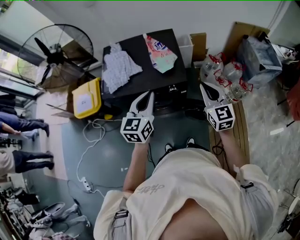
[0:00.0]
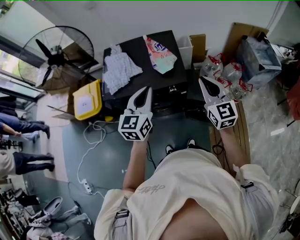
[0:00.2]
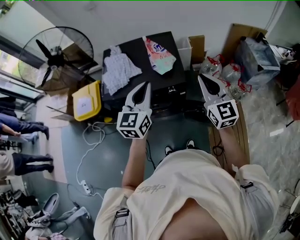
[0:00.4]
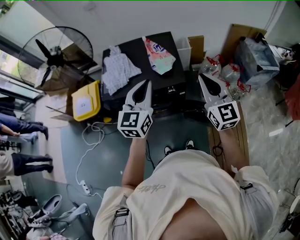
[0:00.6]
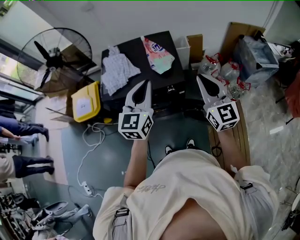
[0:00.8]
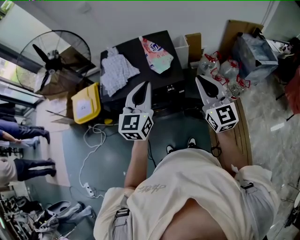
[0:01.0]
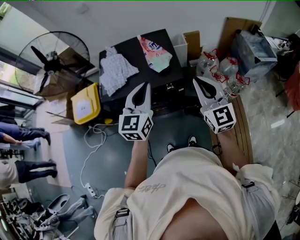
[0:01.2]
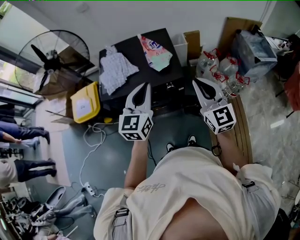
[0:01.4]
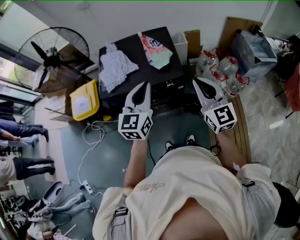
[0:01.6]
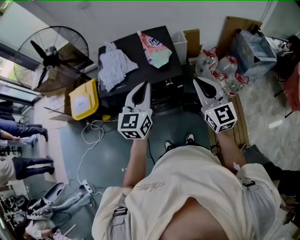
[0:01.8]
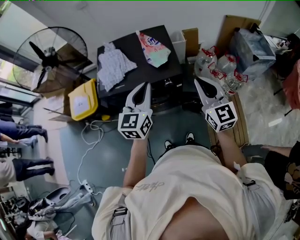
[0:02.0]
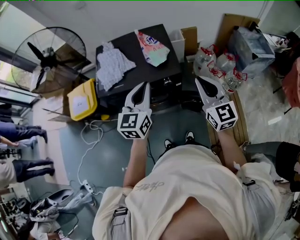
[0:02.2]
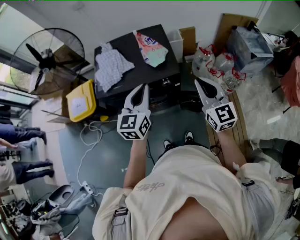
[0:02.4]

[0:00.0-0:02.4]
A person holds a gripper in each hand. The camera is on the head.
0:00.0 to 0:01.2: Both grippers move upward, some 5 cm.
0:01.2 to 0:02.4: The grippers stay close to where they were, moving slightly.

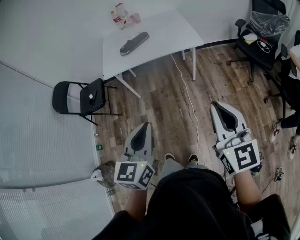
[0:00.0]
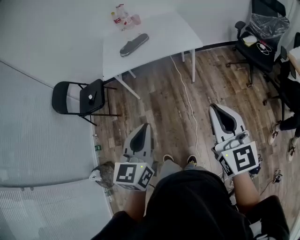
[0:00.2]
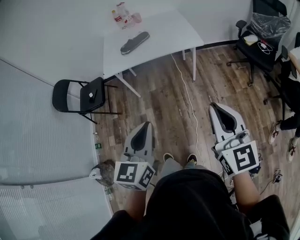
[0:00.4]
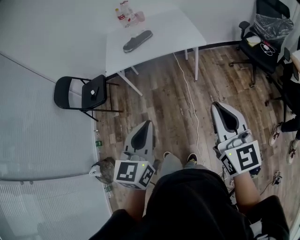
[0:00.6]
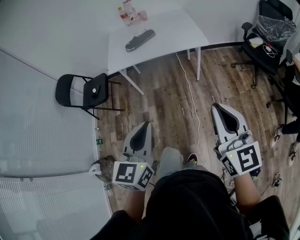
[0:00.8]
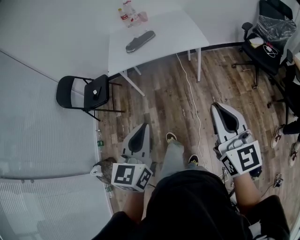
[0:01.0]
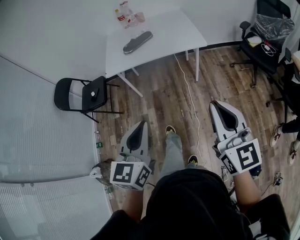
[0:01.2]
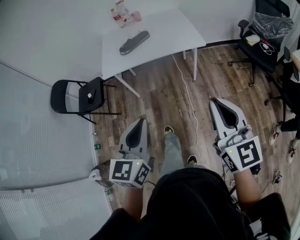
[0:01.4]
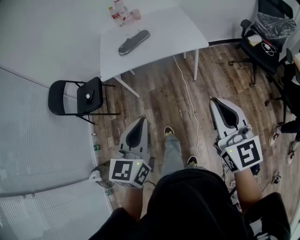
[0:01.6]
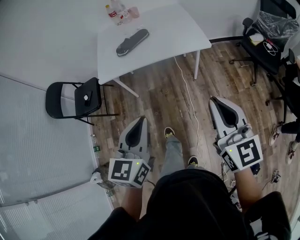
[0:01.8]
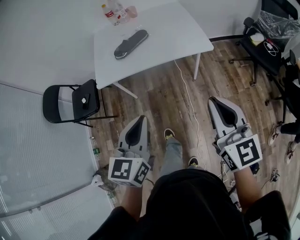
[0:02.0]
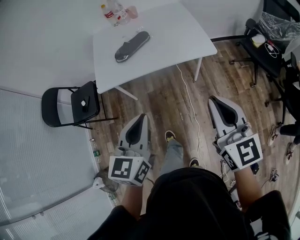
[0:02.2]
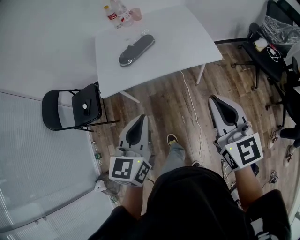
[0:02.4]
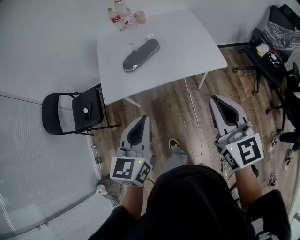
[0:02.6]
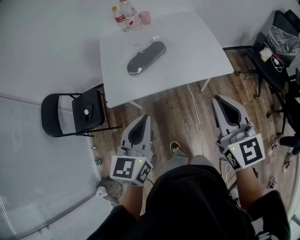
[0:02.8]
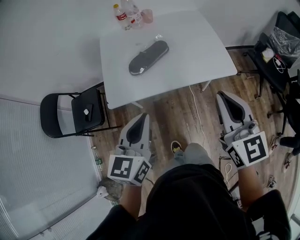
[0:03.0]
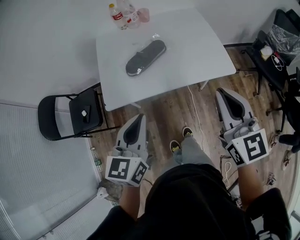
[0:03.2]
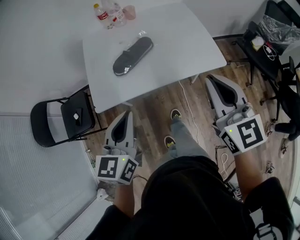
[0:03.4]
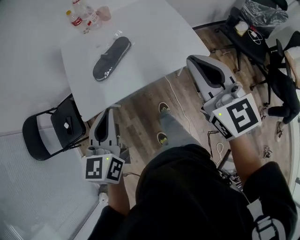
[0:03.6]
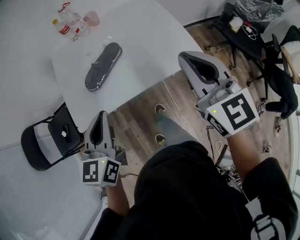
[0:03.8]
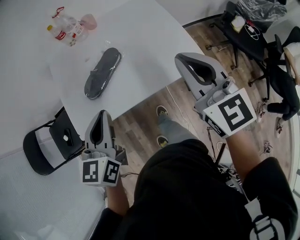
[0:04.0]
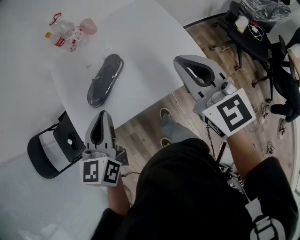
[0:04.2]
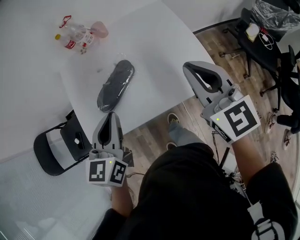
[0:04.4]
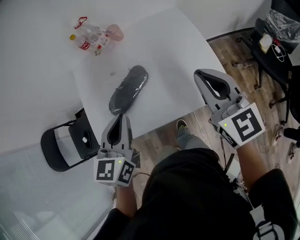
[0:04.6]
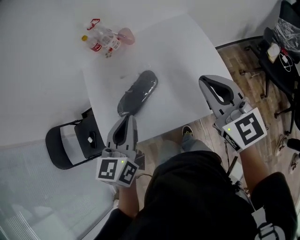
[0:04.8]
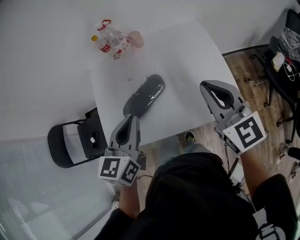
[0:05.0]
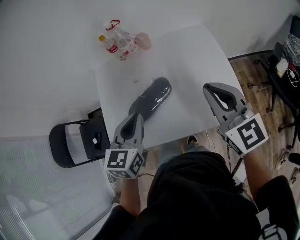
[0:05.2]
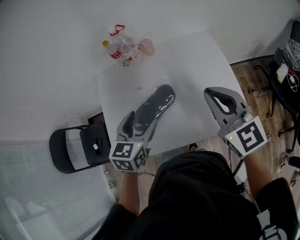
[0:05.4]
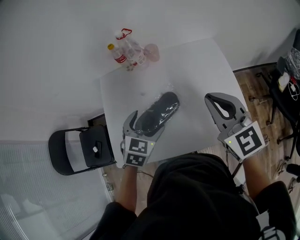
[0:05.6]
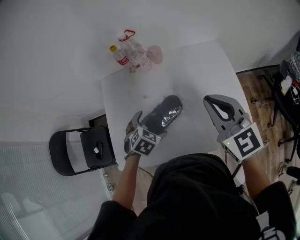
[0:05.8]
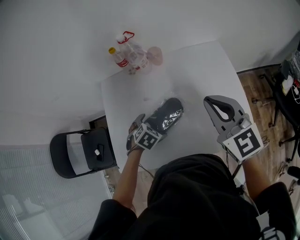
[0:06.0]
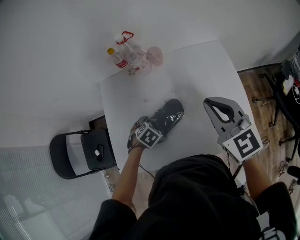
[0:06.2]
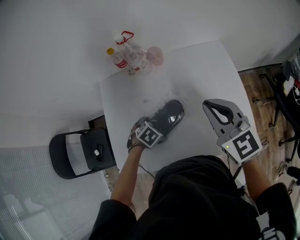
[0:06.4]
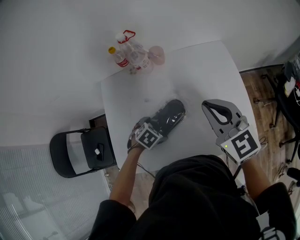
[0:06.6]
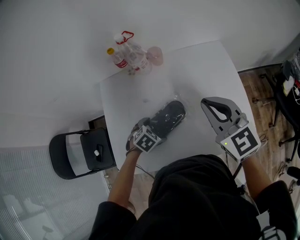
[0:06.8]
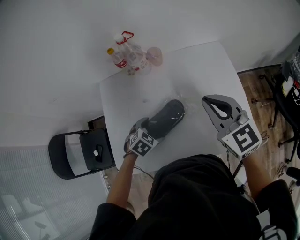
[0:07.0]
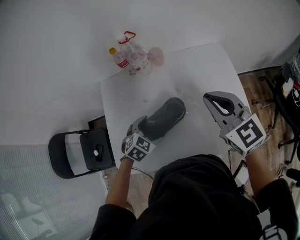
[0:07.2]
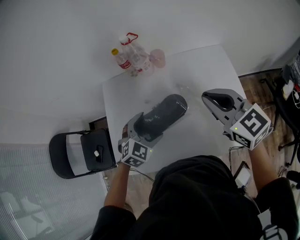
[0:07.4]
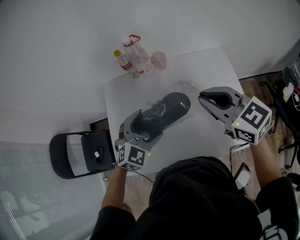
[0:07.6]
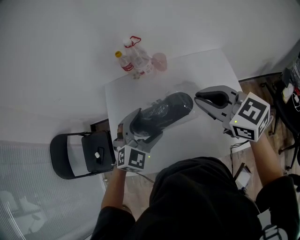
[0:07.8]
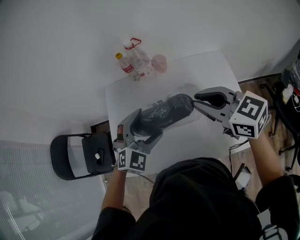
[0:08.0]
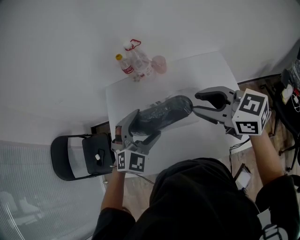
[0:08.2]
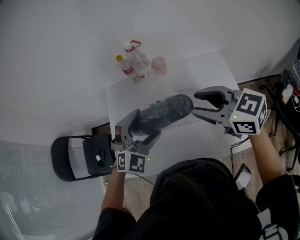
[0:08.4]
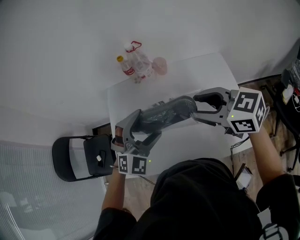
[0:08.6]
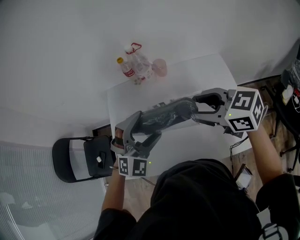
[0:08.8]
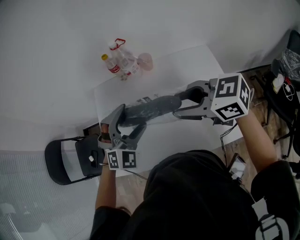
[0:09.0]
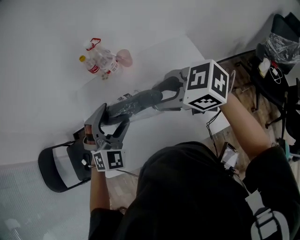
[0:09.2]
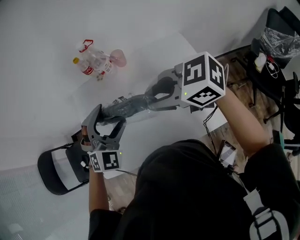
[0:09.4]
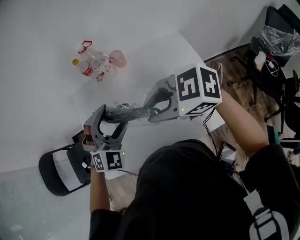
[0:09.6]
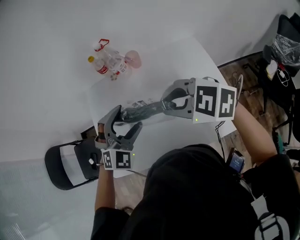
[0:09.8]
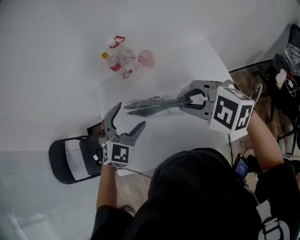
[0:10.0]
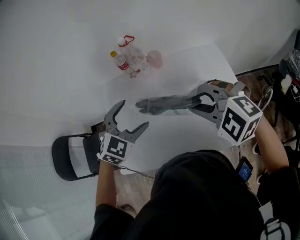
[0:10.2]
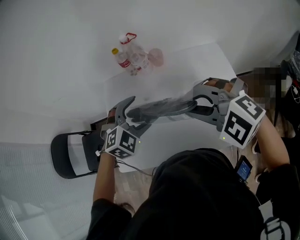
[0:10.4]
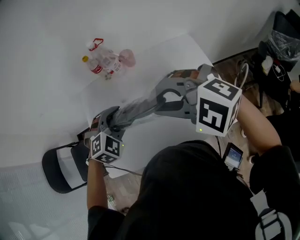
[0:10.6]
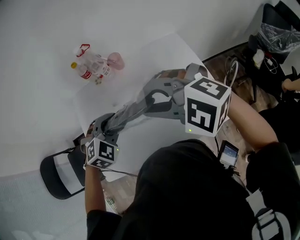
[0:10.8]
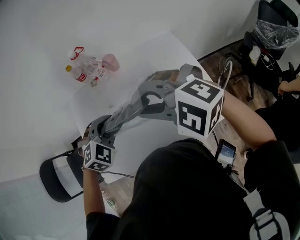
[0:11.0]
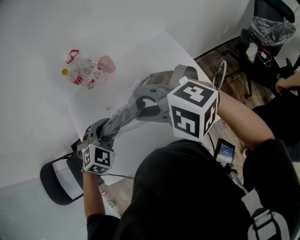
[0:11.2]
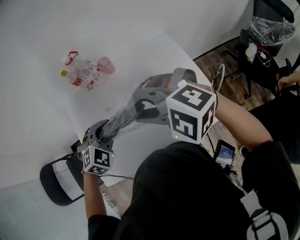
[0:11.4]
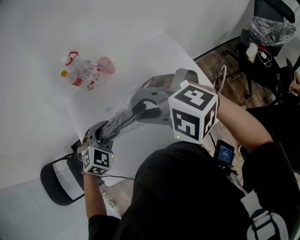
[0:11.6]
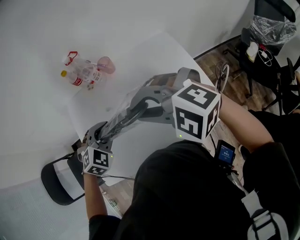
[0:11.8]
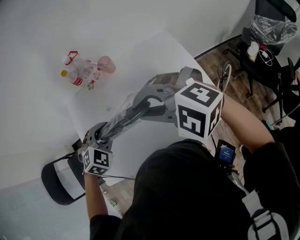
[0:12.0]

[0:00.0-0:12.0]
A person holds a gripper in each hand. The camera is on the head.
0:00.0 to 0:01.6: Both grippers move forward, some 10 cm.
0:01.6 to 0:03.0: Both grippers travel together forward and to the left, roughly 35 cm.
0:03.0 to 0:04.4: The two grippers go some 25 cm forward.
0:04.4 to 0:06.0: The left gripper is displaced downward and forward by roughly 30 cm, points its fingers some 50 degrees further downward, and opens its fingers. Meanwhile the right gripper is displaced forward and to the left by some 20 cm.
0:06.0 to 0:07.6: The left gripper shifts about 15 cm upward, and tips its fingers upward by some 40 degrees. Meanwhile the right gripper swivels approximately 20 degrees.
0:07.6 to 0:09.0: The left gripper moves upward, roughly 5 cm, and swivels about 30 degrees. The right gripper turns by roughly 30 degrees, and opens up.
0:09.0 to 0:10.4: The left gripper rotates some 20 degrees. Meanwhile the right gripper twists roughly 50 degrees counterclockwise, seen from behind, and closes up.
0:10.4 to 0:12.0: The left gripper ends up approximately 5 cm from where it was, and closes.

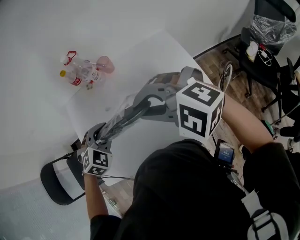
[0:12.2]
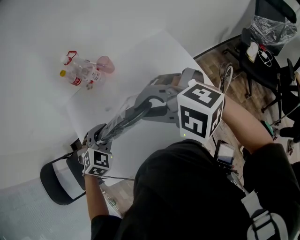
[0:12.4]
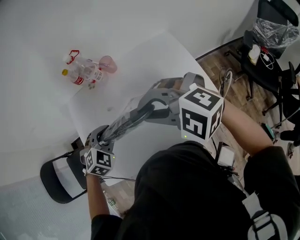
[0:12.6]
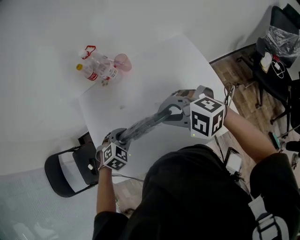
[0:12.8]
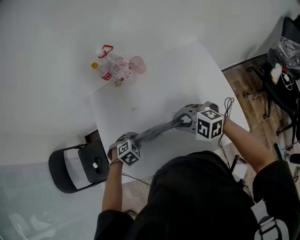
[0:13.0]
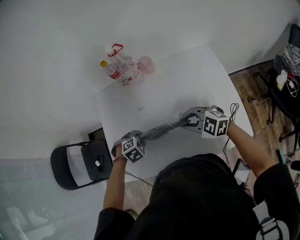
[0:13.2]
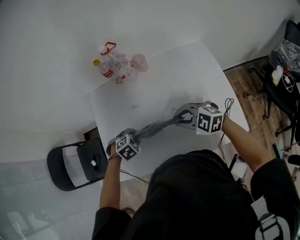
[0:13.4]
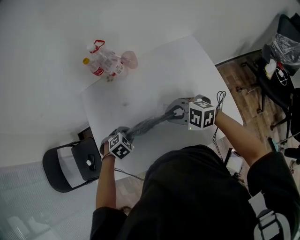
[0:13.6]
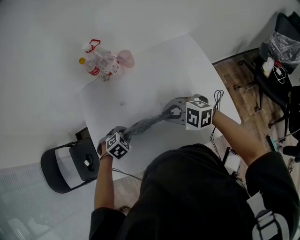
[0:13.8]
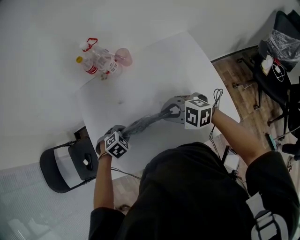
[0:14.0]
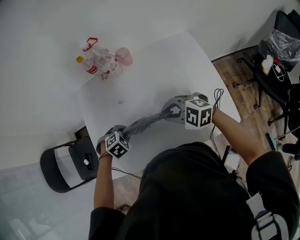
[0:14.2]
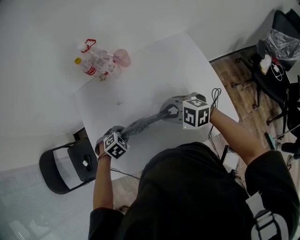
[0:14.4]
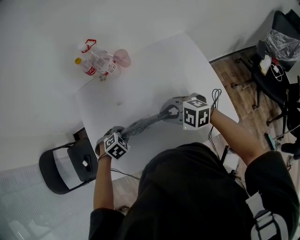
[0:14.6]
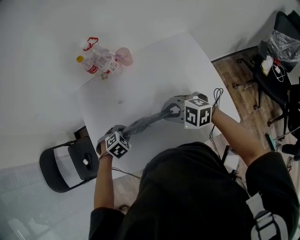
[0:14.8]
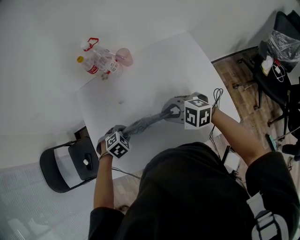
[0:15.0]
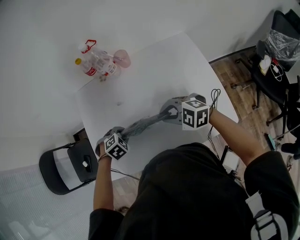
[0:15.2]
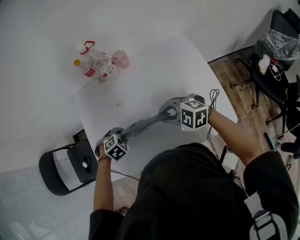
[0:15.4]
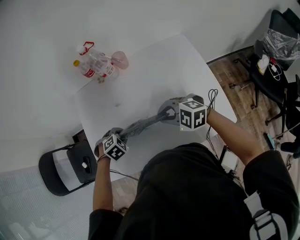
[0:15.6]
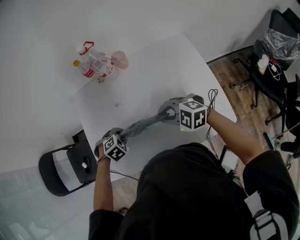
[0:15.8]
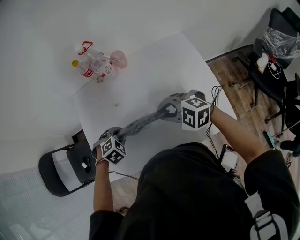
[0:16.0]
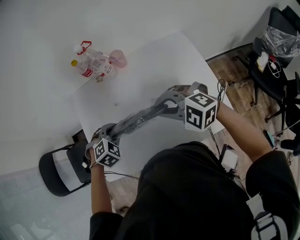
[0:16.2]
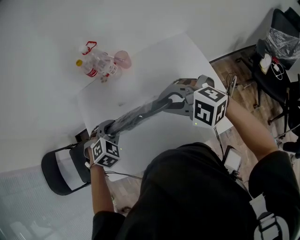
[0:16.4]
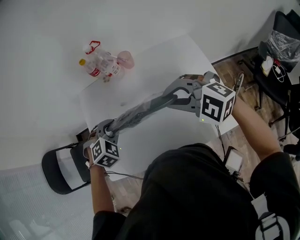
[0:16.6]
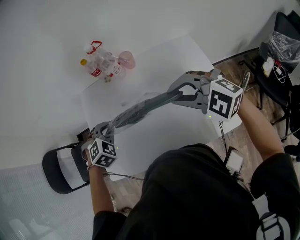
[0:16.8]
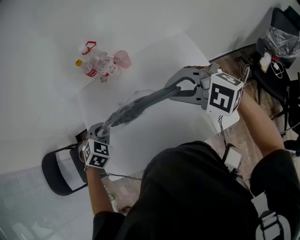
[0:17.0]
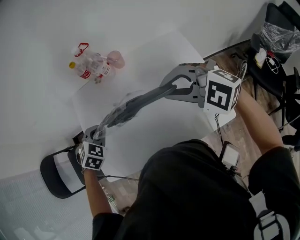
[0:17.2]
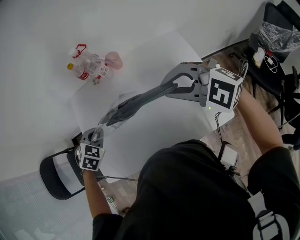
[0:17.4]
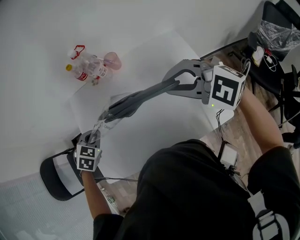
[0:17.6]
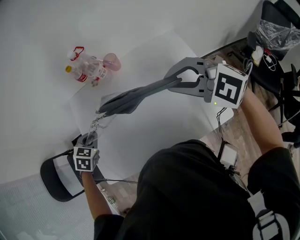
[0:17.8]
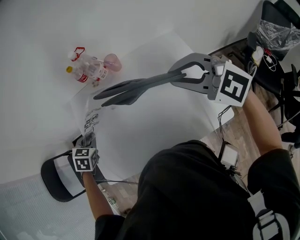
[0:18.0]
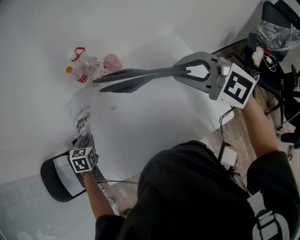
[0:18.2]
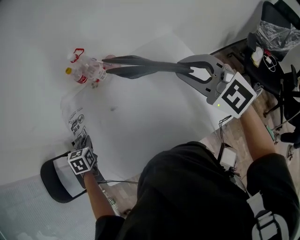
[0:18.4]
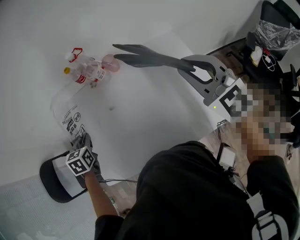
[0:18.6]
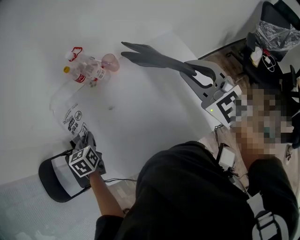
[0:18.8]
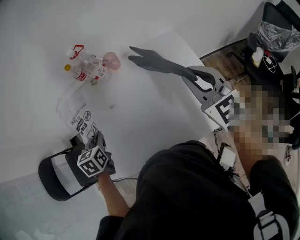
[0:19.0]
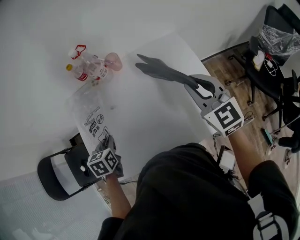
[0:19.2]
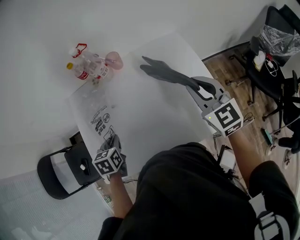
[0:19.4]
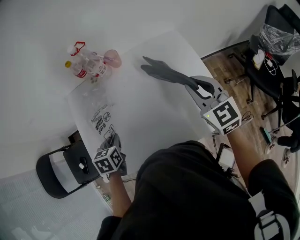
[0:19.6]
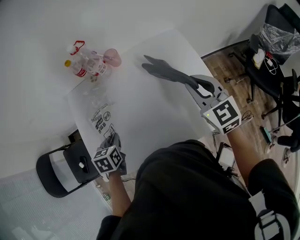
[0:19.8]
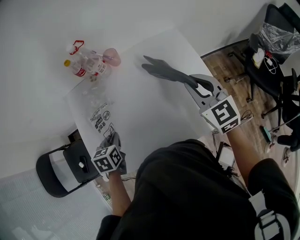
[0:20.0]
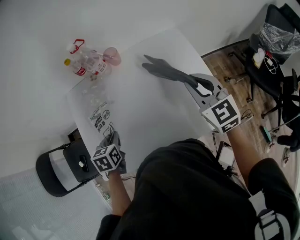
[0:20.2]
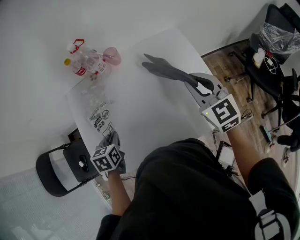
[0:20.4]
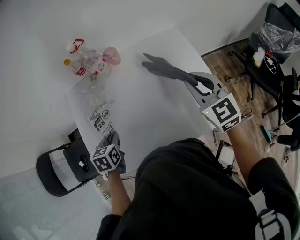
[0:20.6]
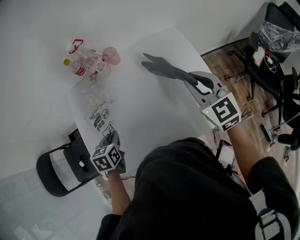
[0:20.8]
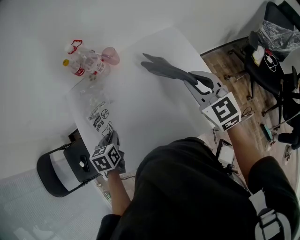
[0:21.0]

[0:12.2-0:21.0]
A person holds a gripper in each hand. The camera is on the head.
0:12.2 to 0:13.6: Both grippers travel together downward, about 15 cm. The left gripper changes its angle by some 30 degrees.
0:13.6 to 0:15.2: The two grippers keep their place.
0:15.2 to 0:16.6: Both grippers travel together upward, roughly 15 cm. The left gripper swivels about 20 degrees.
0:16.6 to 0:18.0: The left gripper is displaced to the left and forward by about 10 cm, and changes its angle by about 40 degrees. The right gripper goes about 10 cm to the right and upward.
0:18.0 to 0:19.6: The right gripper is displaced downward and to the right by approximately 10 cm, and rotates approximately 50 degrees, while the left gripper moves to the right and backward, approximately 10 cm, and swivels about 30 degrees.
0:19.6 to 0:21.0: The two grippers keep their place.
